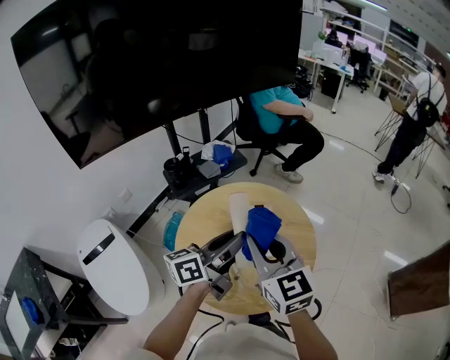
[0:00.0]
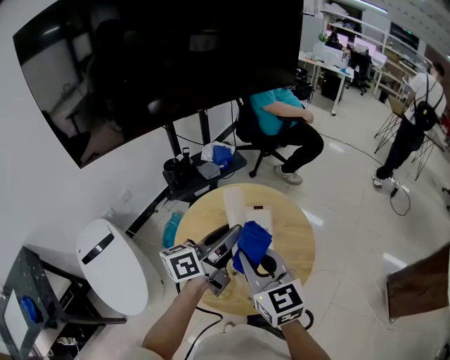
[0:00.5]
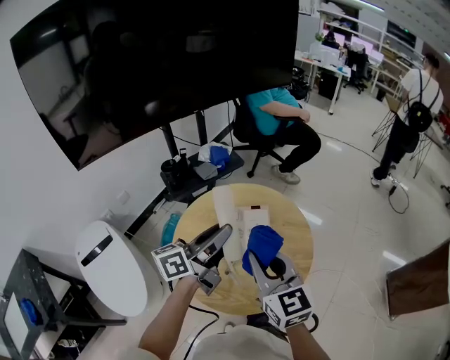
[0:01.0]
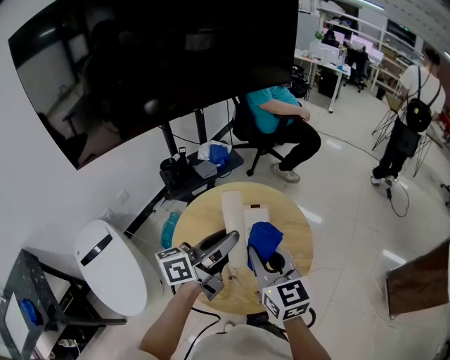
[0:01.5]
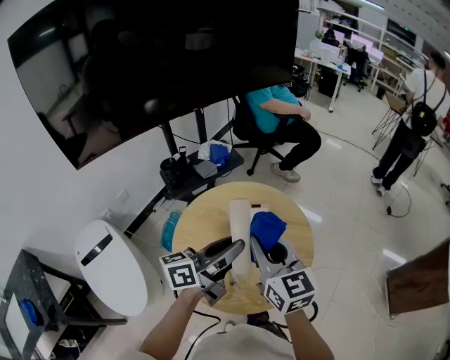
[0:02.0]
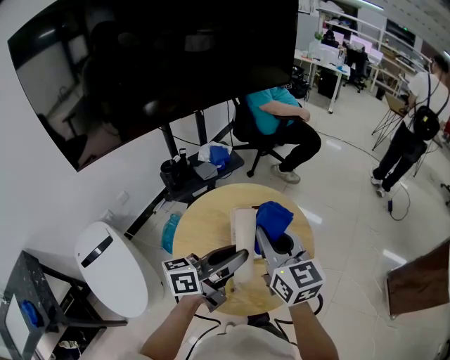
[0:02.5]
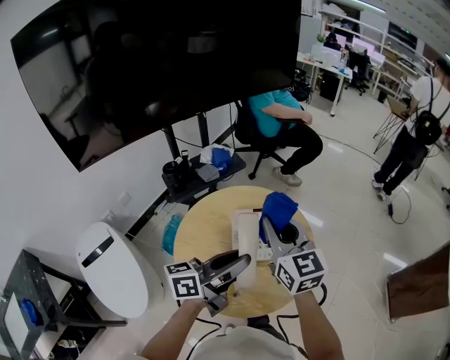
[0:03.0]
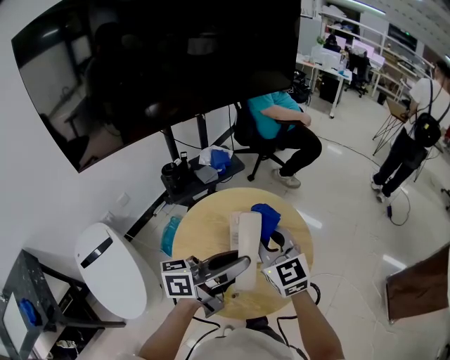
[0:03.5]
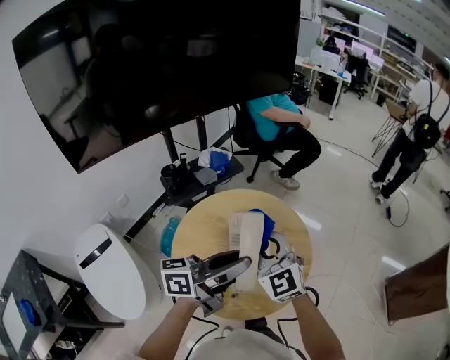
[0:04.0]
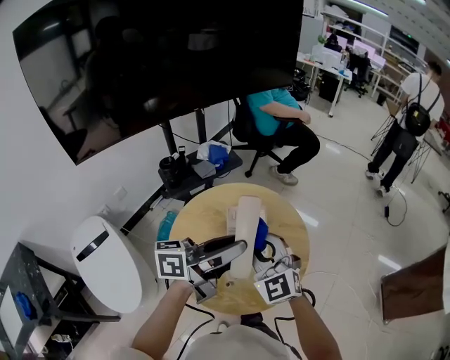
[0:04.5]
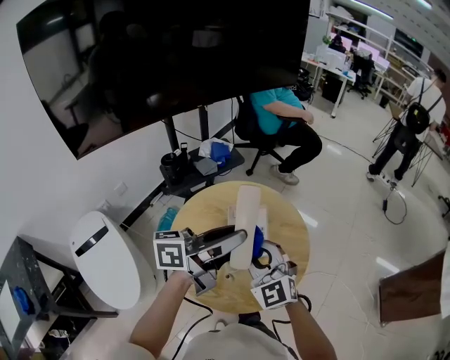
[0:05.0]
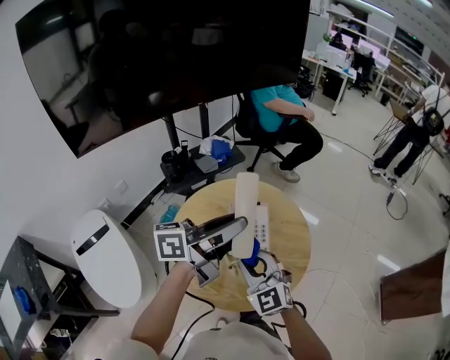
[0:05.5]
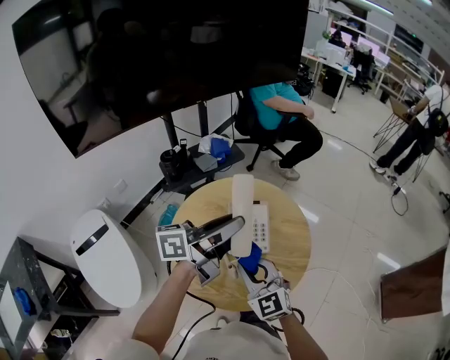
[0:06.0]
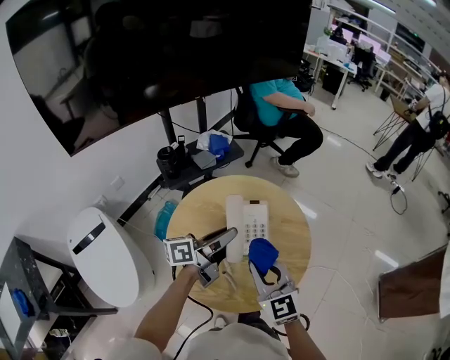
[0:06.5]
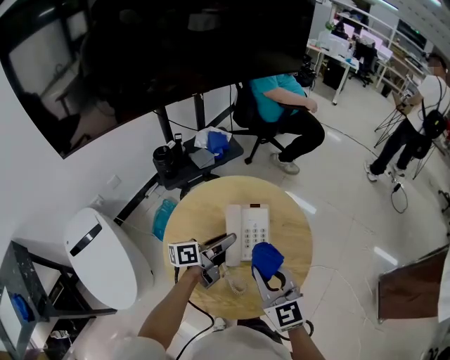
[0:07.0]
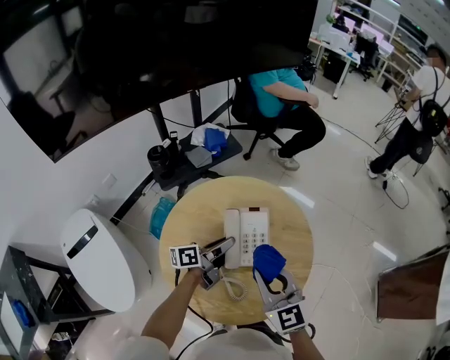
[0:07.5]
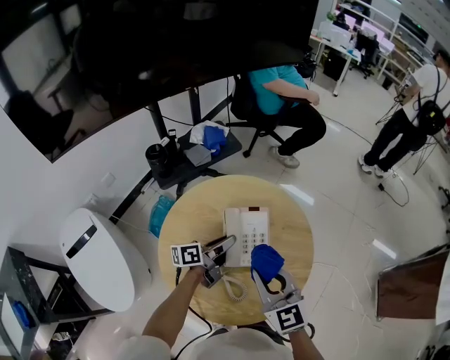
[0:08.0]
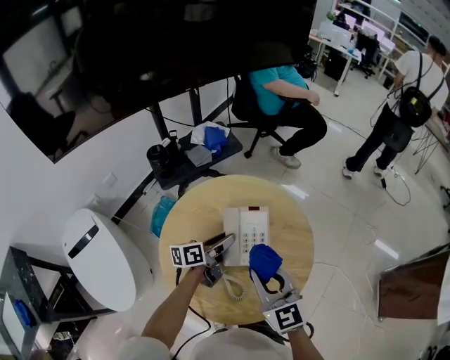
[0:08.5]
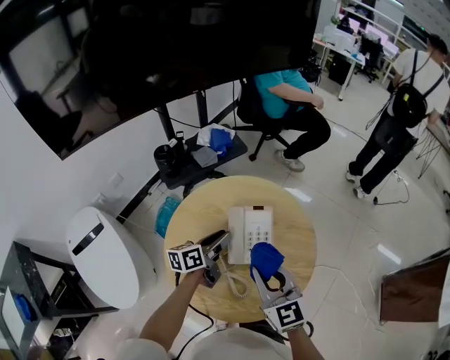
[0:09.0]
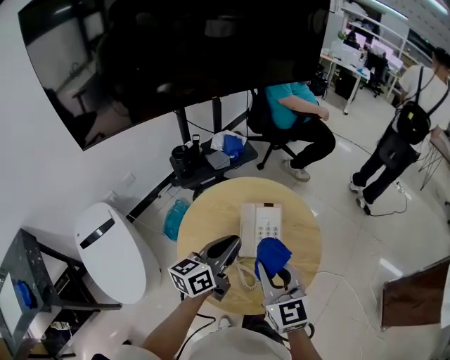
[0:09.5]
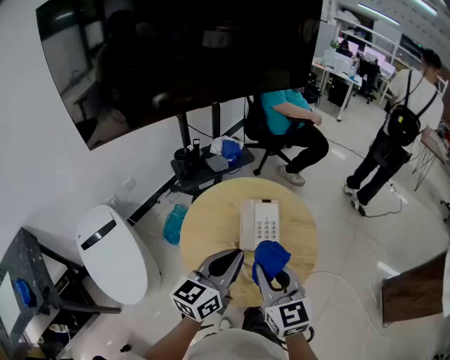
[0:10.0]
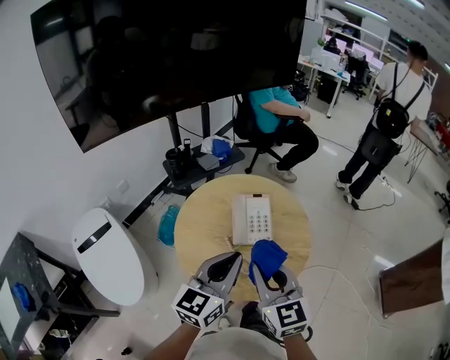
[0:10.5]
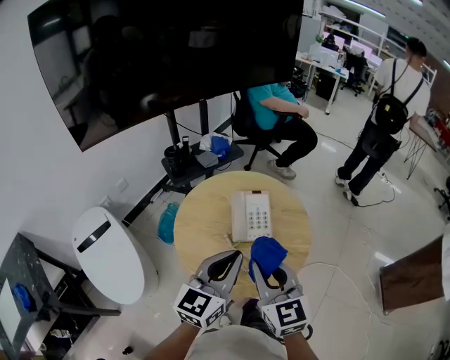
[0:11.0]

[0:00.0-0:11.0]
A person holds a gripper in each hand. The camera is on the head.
0:00.0 to 0:02.0: The grippers stay close to where they were, moving slightly.
0:02.0 to 0:03.5: The grippers make only small movements.
0:03.5 to 0:05.5: The left gripper changes place by approximately 5 cm. Meanwhile the right gripper travels backward and downward by about 10 cm.
0:05.5 to 0:07.5: The left gripper heads downward, covering some 30 cm, and turns by roughly 30 degrees; the right gripper shifts about 5 cm to the right, and turns by some 20 degrees.
0:07.5 to 0:09.0: The left gripper rotates about 20 degrees.
0:09.0 to 0:11.0: The right gripper shifts about 15 cm backward and upward, while the left gripper goes about 30 cm backward and upward, twists approximately 40 degrees clockwise, seen from behind, and closes up.

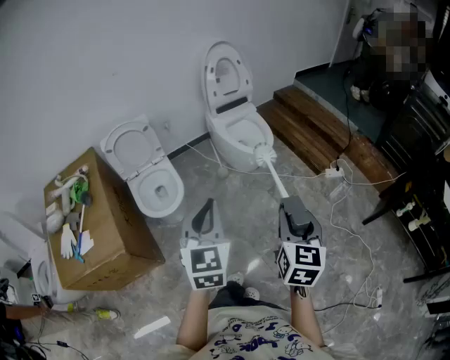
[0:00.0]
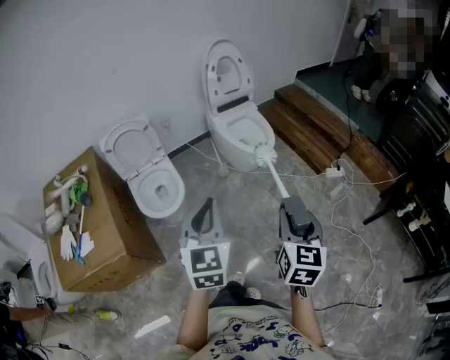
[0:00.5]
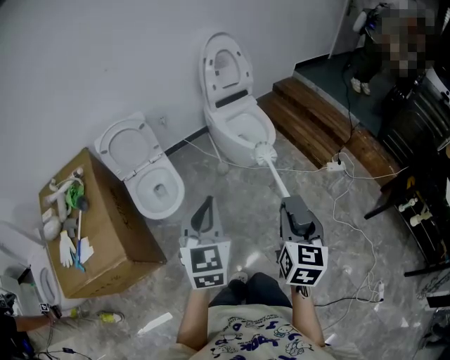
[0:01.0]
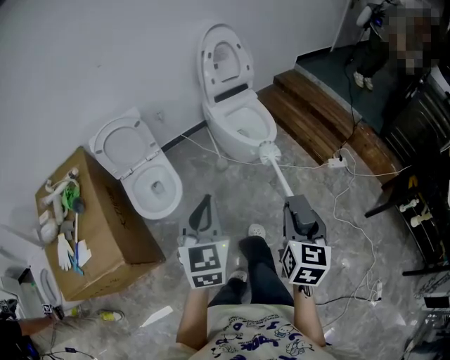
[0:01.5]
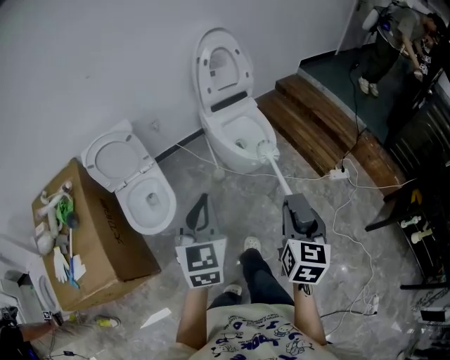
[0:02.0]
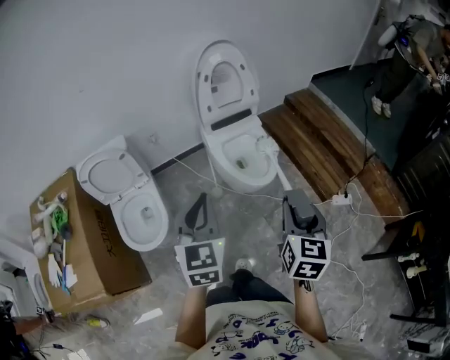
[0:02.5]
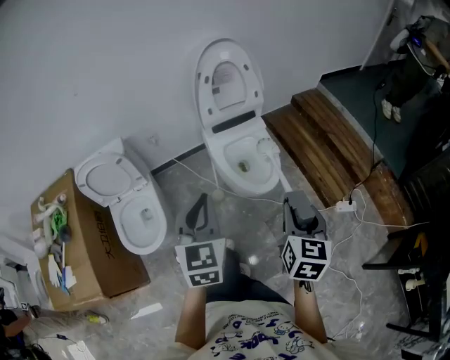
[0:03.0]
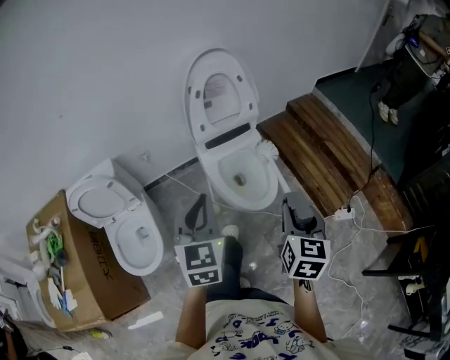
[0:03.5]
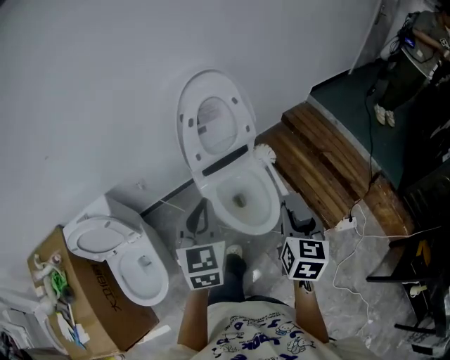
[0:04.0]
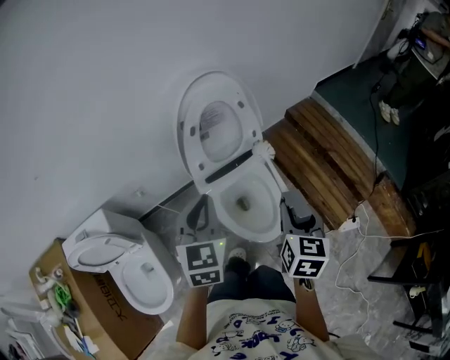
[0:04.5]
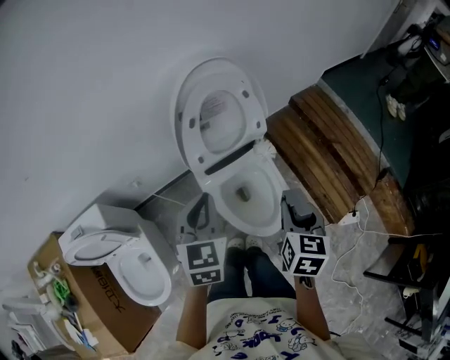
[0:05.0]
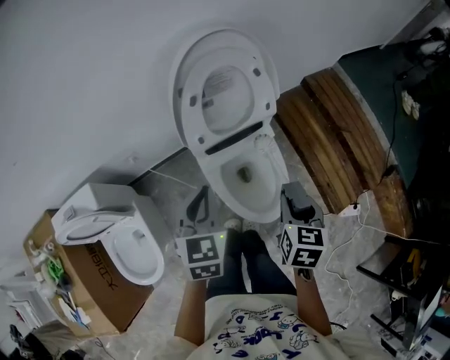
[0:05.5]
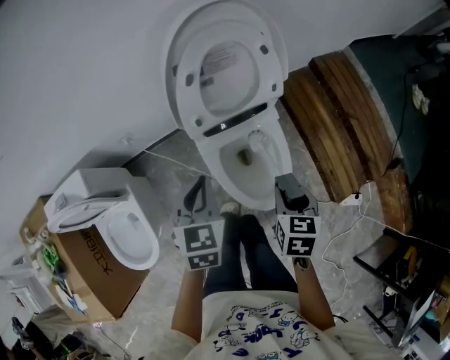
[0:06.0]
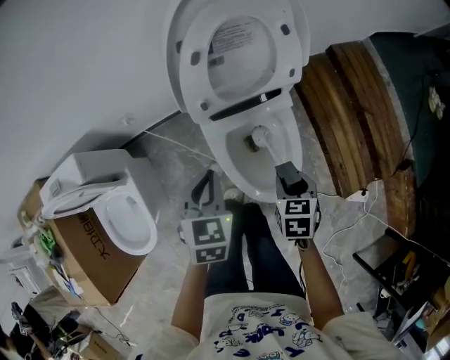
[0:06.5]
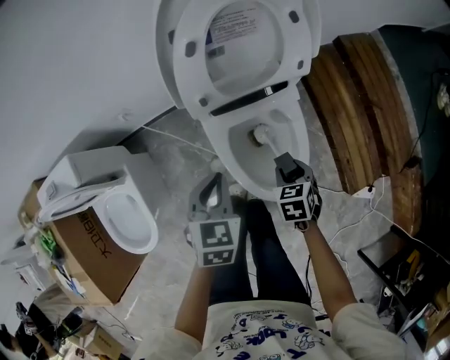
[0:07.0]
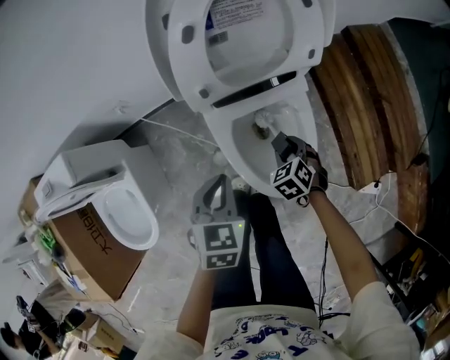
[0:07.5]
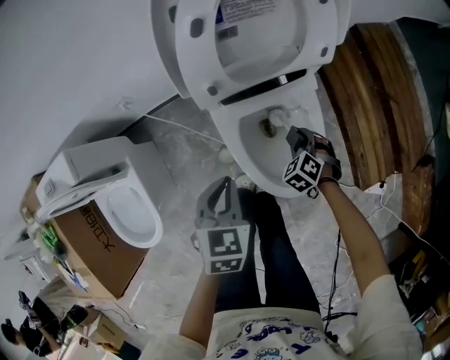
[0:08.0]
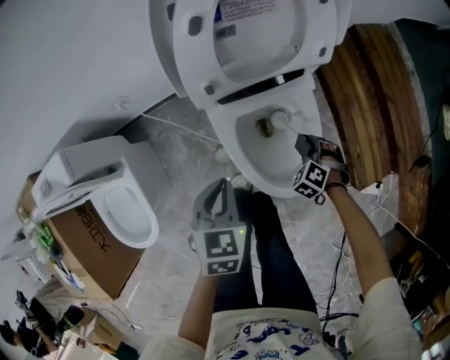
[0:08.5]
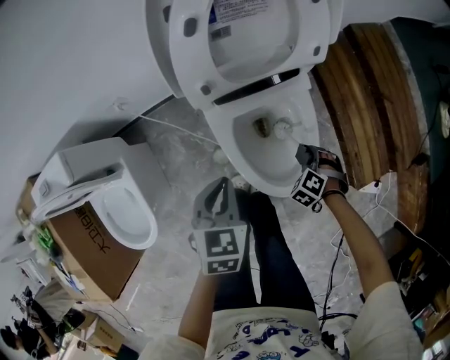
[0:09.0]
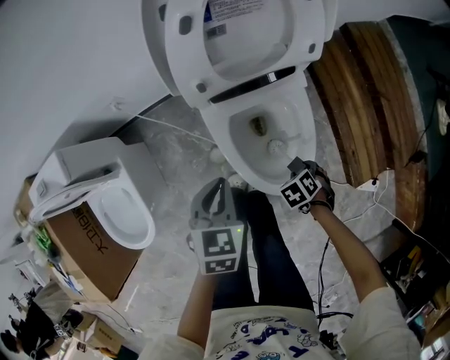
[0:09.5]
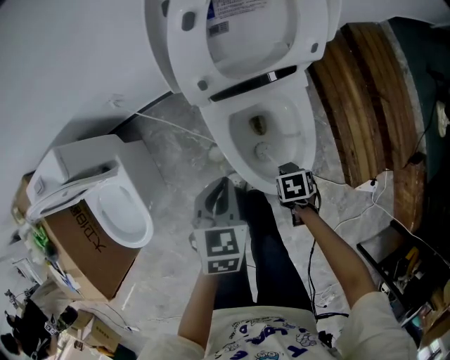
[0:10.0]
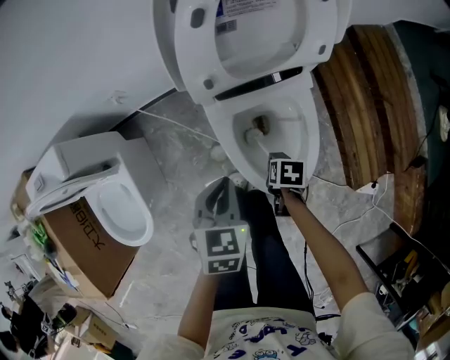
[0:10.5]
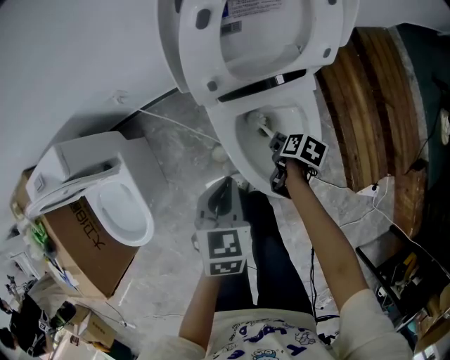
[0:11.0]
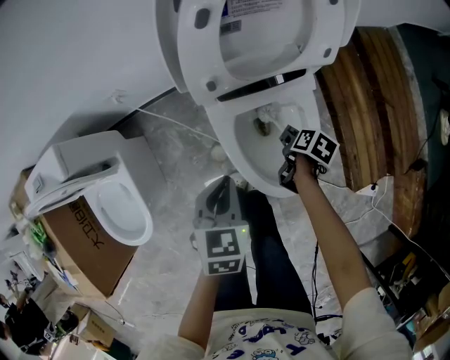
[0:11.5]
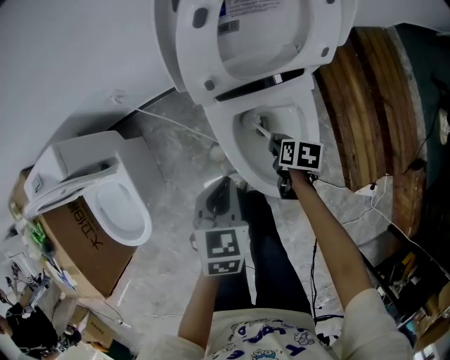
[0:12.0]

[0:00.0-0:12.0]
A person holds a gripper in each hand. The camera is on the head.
0:00.0 to 0:02.0: The two grippers go roughly 20 cm forward.
0:02.0 to 0:04.0: The pair of grippers is taken forward, approximately 50 cm.
0:04.0 to 0:06.0: Both grippers move downward and forward, some 25 cm. The left gripper rotates approximately 20 degrees; the right gripper swivels approximately 30 degrees.
0:06.0 to 0:08.0: The right gripper heads downward, covering some 30 cm, and rolls counterclockwise, seen from behind, by some 60 degrees. Meanwhile the left gripper is displaced downward by approximately 15 cm.
0:08.0 to 0:10.0: The right gripper ends up about 15 cm from where it was, and twists approximately 50 degrees clockwise, seen from behind.
0:10.0 to 0:12.0: The right gripper shifts by some 10 cm, and turns by some 30 degrees.

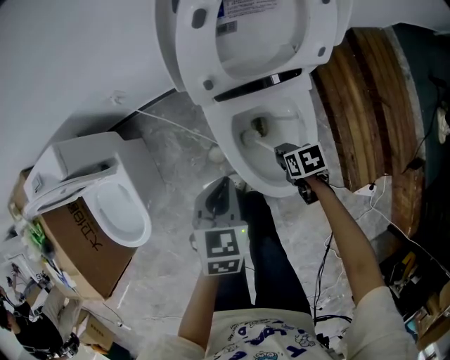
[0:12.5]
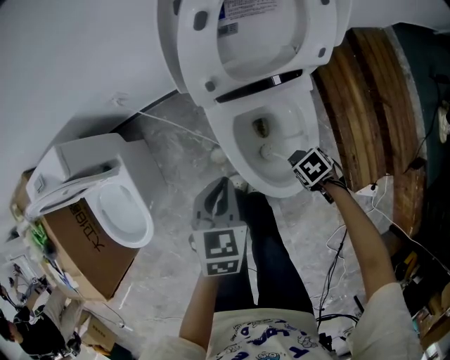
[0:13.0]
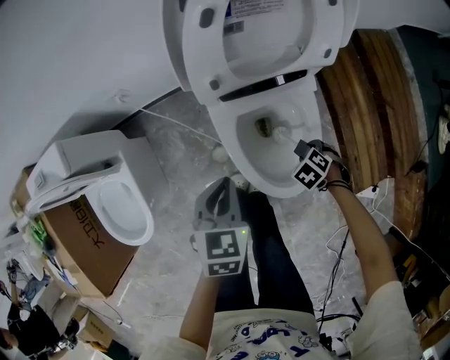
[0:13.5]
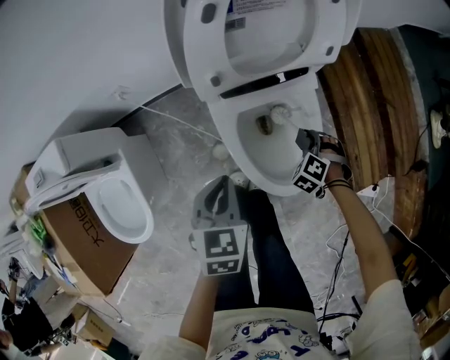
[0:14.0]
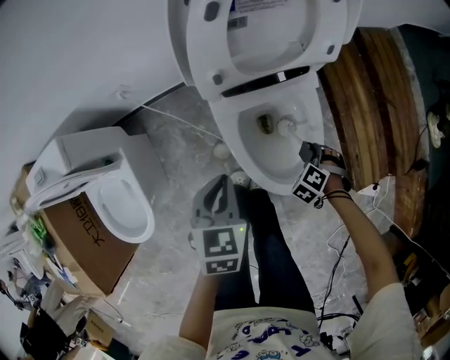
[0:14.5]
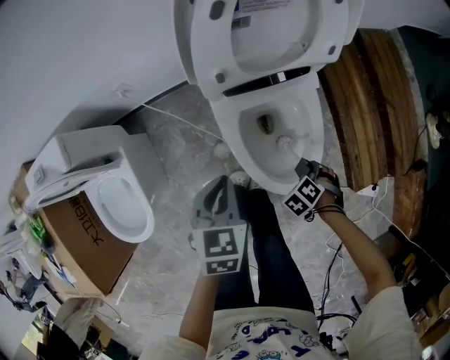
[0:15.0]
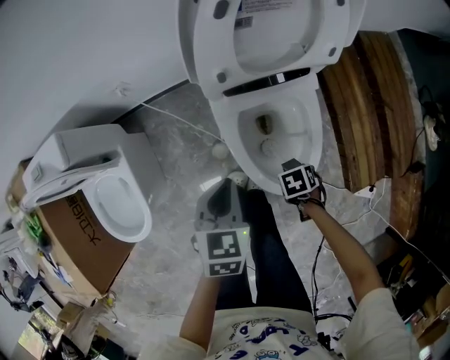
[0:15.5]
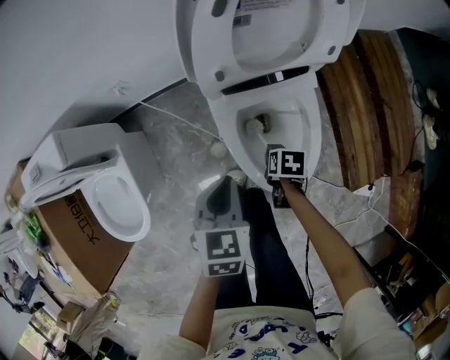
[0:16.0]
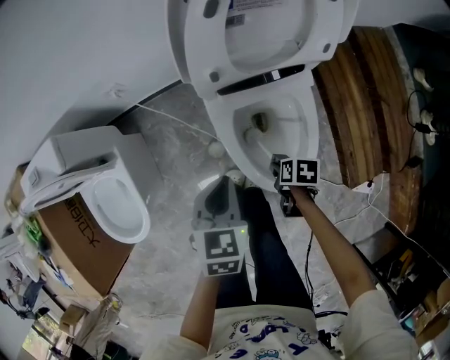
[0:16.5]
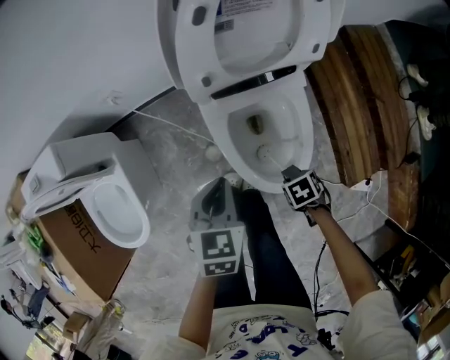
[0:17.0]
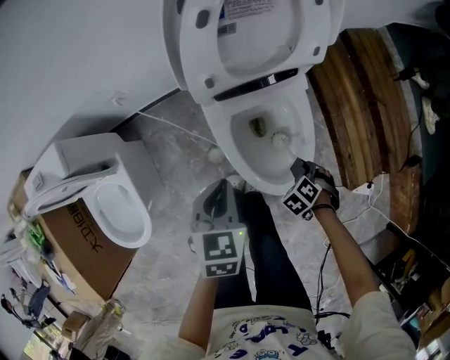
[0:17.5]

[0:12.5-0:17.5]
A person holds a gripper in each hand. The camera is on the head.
0:12.5 to 0:15.0: The right gripper ends up about 10 cm from where it was, and rotates some 50 degrees.
